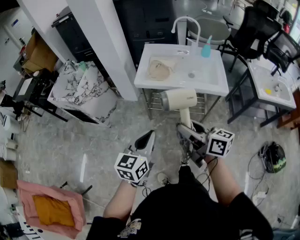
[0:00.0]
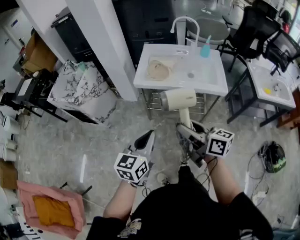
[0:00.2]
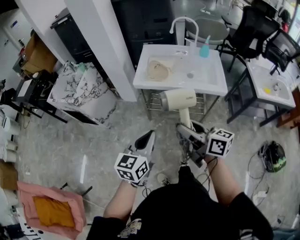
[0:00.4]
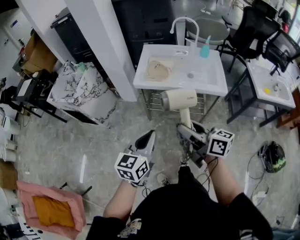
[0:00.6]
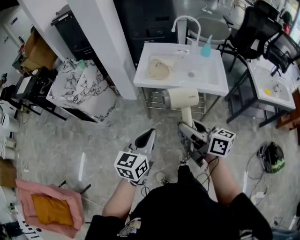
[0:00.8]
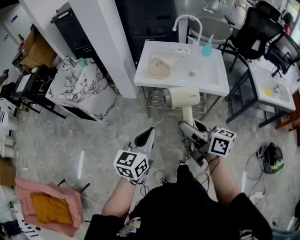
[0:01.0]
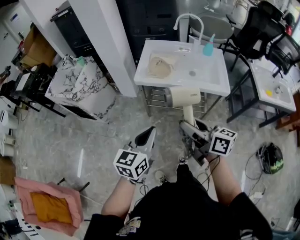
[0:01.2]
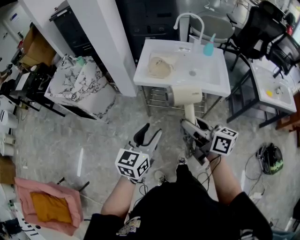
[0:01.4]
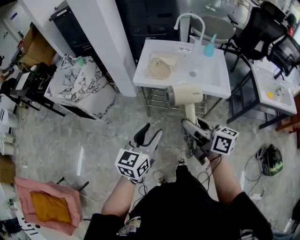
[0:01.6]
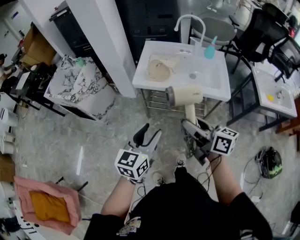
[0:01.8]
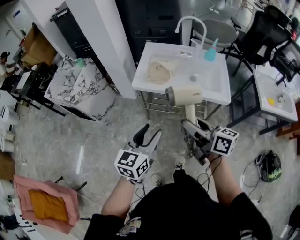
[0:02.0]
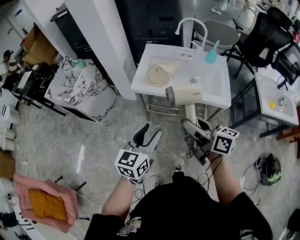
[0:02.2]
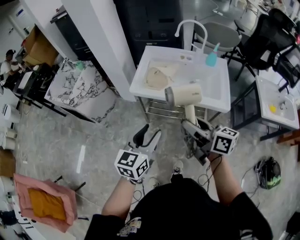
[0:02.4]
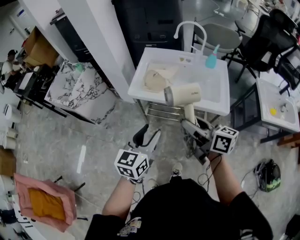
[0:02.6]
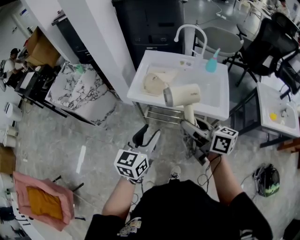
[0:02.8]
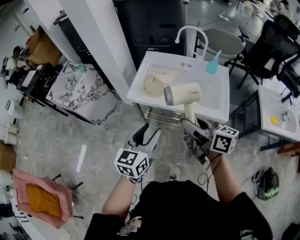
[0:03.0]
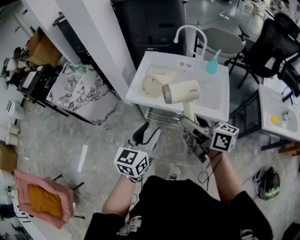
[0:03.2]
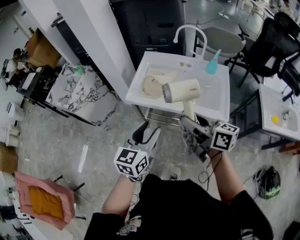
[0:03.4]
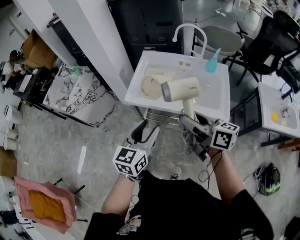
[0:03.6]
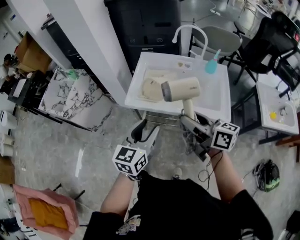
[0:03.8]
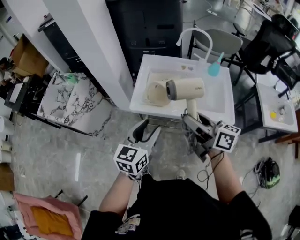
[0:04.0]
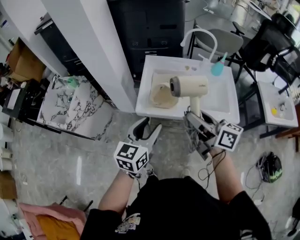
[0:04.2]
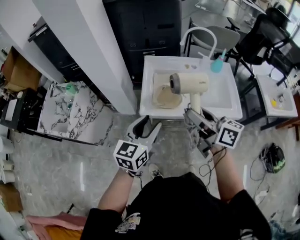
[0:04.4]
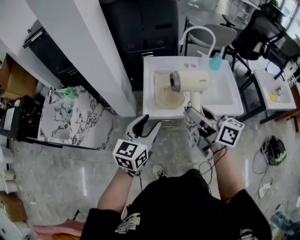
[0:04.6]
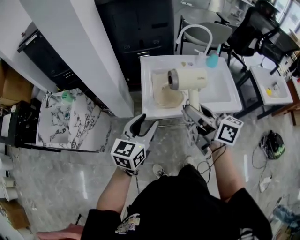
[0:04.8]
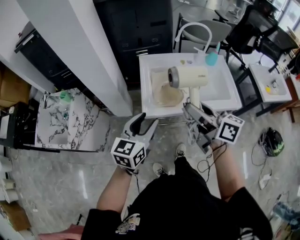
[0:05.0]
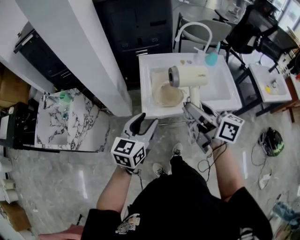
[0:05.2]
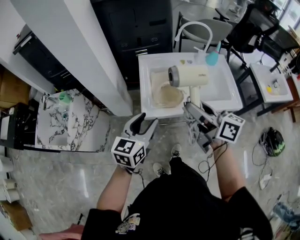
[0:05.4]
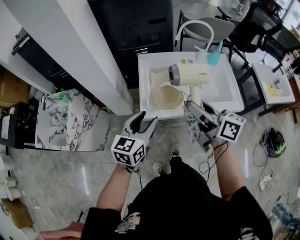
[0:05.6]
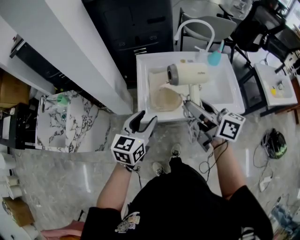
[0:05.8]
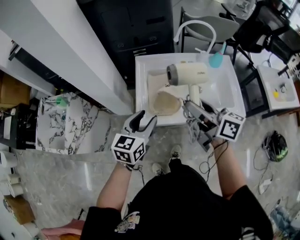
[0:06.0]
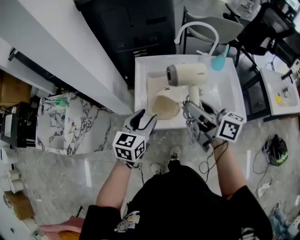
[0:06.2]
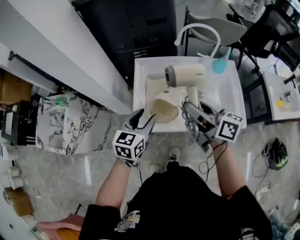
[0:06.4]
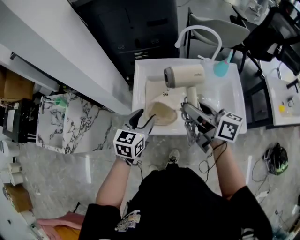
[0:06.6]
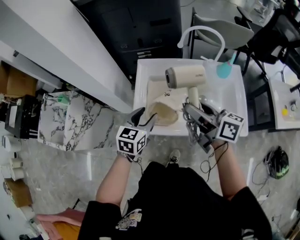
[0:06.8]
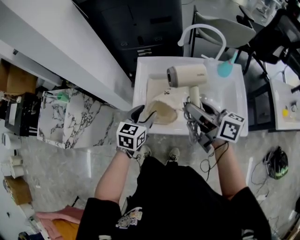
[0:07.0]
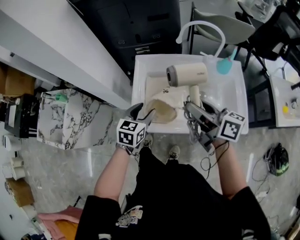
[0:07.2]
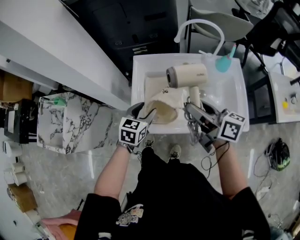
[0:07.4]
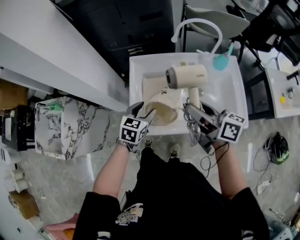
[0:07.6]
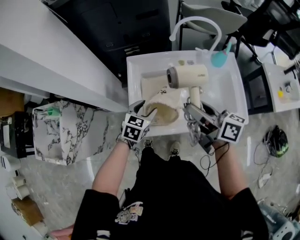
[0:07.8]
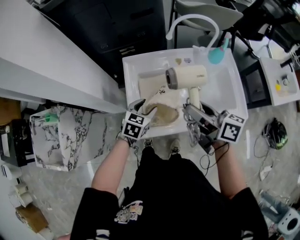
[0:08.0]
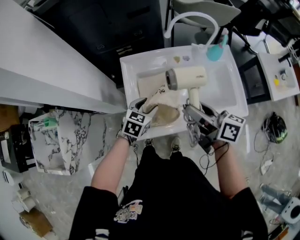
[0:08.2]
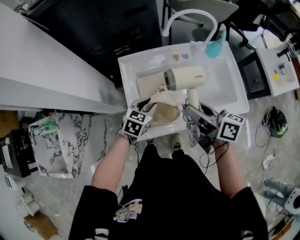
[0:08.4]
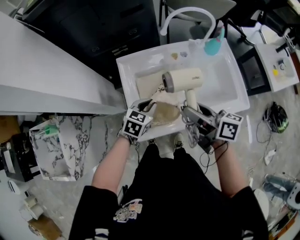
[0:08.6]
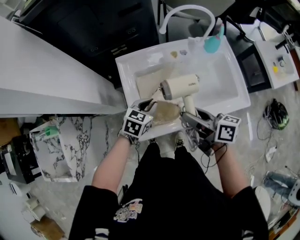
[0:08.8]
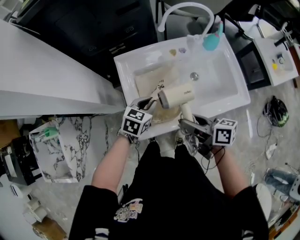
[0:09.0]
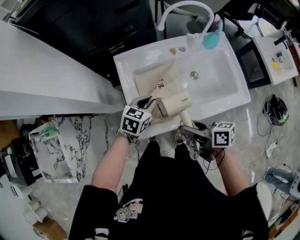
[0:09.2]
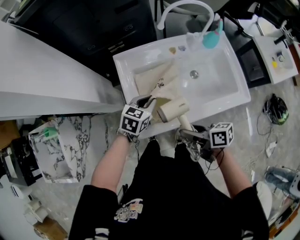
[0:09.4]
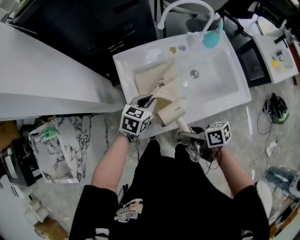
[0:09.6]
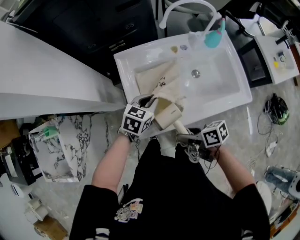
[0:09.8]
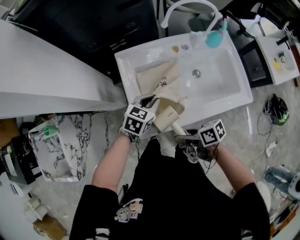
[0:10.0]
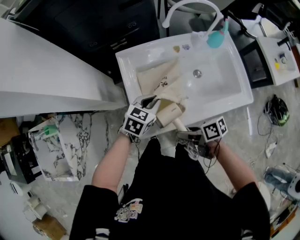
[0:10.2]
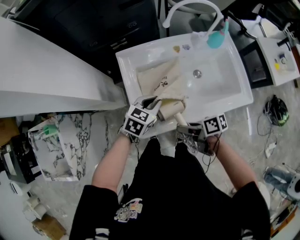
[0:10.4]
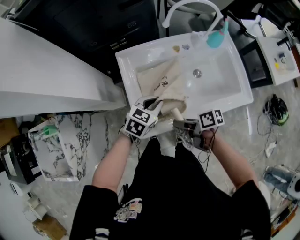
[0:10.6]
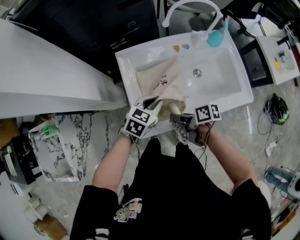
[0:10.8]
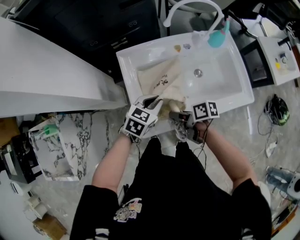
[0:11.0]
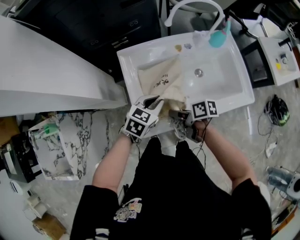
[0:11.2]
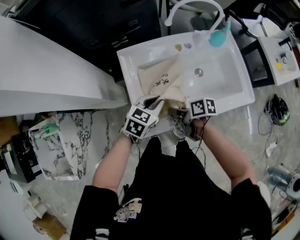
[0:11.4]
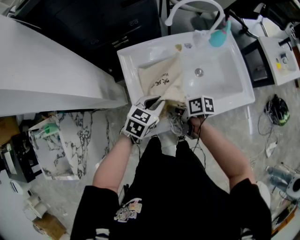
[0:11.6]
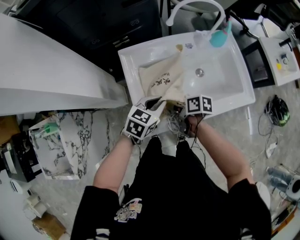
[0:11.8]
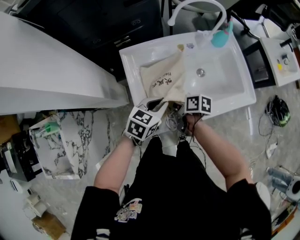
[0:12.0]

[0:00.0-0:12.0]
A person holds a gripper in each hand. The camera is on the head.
0:00.0 to 0:01.6: The right gripper moves approximately 5 cm, while the left gripper opens up.
0:01.6 to 0:03.0: Both grippers move forward and to the right, roughly 15 cm.
0:03.0 to 0:04.4: The two grippers go approximately 20 cm forward and to the left.
0:04.4 to 0:06.0: Both grippers move forward, roughly 10 cm.
0:06.0 to 0:07.6: The left gripper heads downward, forward and to the right, covering some 20 cm, while the right gripper goes about 10 cm forward, downward and to the right.
0:07.6 to 0:09.0: The left gripper turns by some 20 degrees, and closes up. The right gripper moves downward and backward, about 10 cm, and rotates about 20 degrees.
0:09.0 to 0:10.4: The right gripper goes about 10 cm downward, and turns by about 30 degrees.
0:10.4 to 0:12.0: The right gripper goes roughly 10 cm forward, and rotates some 20 degrees.

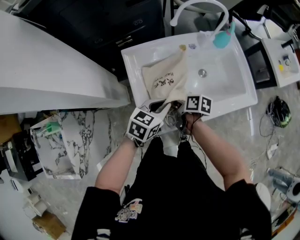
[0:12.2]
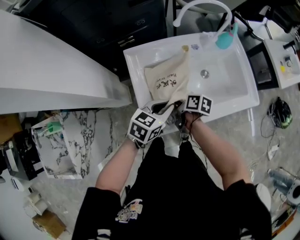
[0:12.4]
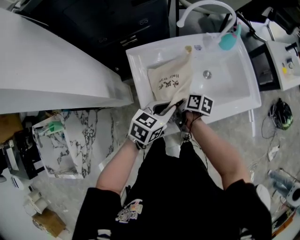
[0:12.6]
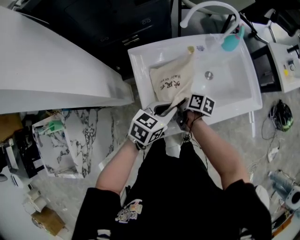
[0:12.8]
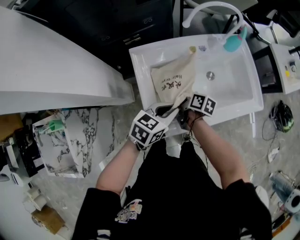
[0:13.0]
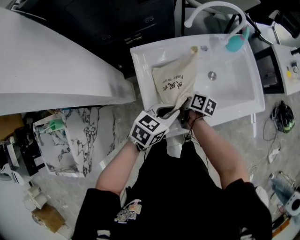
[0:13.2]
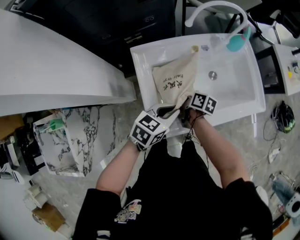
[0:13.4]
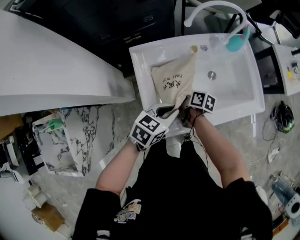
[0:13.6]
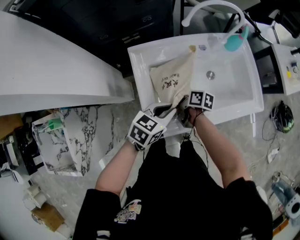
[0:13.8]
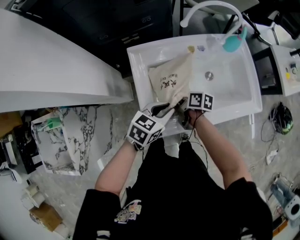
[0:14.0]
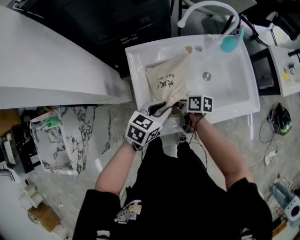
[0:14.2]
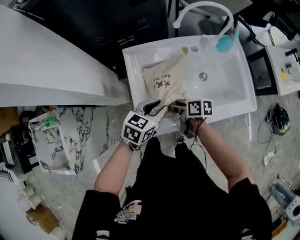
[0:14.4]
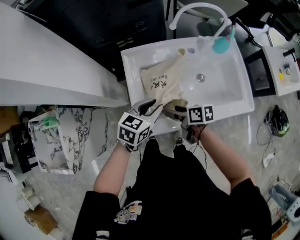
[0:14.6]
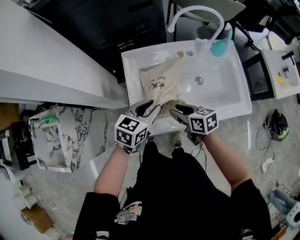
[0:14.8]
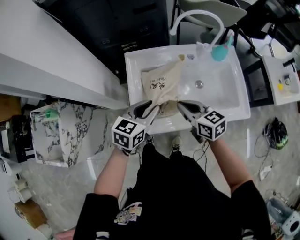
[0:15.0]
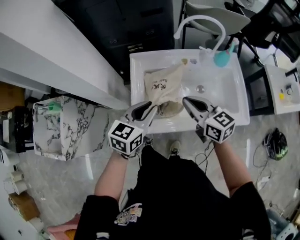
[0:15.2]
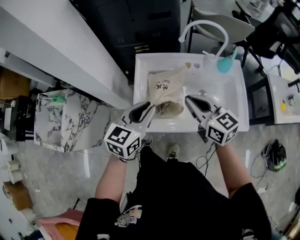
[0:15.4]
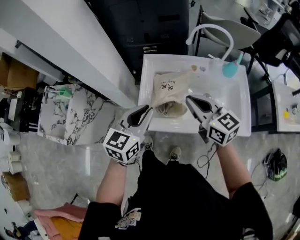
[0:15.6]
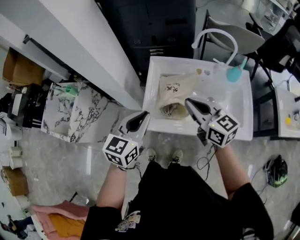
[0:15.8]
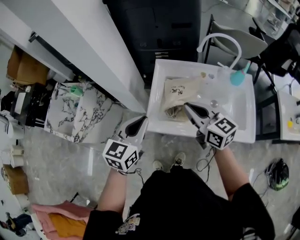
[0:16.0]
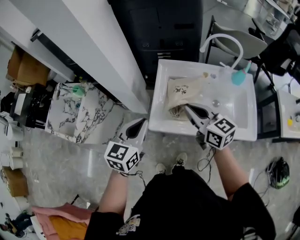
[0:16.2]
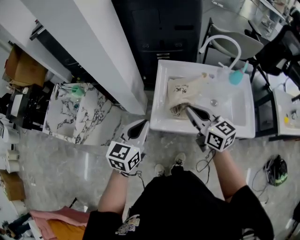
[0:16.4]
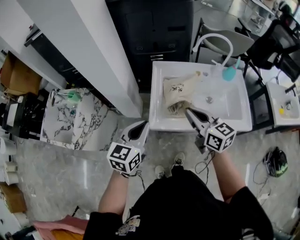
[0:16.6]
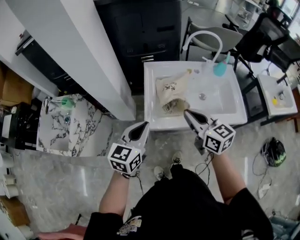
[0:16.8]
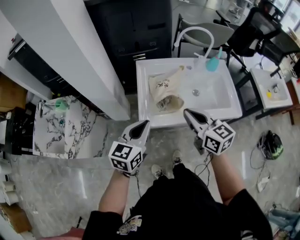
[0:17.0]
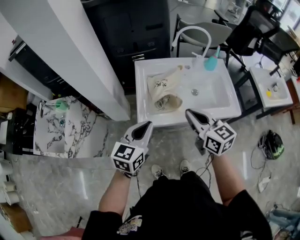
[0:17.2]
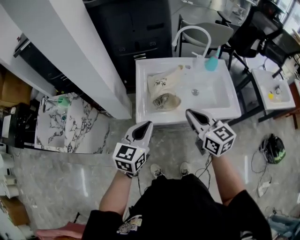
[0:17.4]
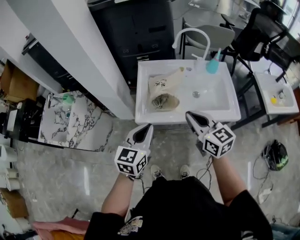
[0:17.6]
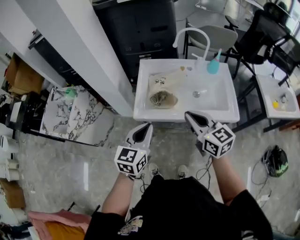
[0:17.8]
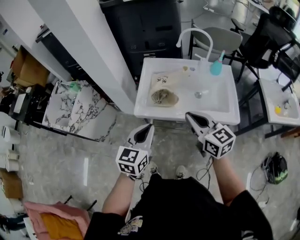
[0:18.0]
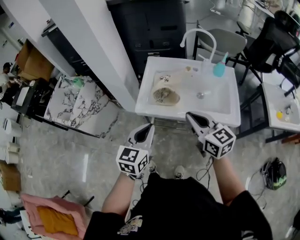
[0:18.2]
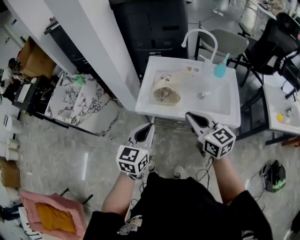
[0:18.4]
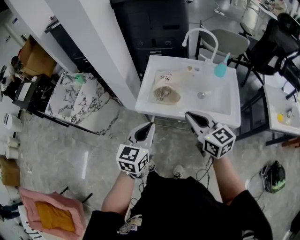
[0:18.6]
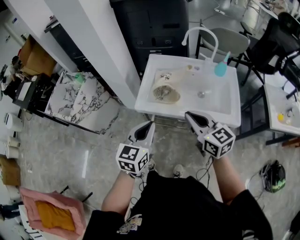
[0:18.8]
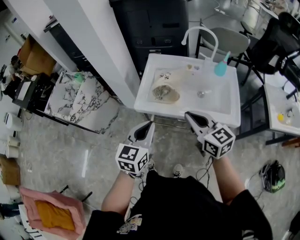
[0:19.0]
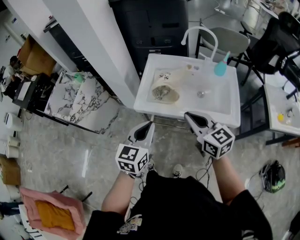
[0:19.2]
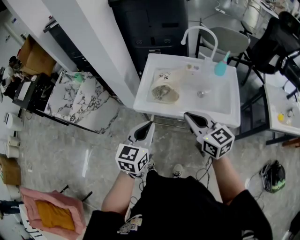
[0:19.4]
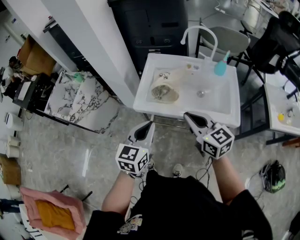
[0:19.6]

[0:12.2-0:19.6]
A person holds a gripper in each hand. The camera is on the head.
0:12.2 to 0:13.6: The right gripper goes roughly 5 cm forward.
0:13.6 to 0:15.2: The left gripper travels upward by some 10 cm, and turns by about 30 degrees. The right gripper shifts roughly 25 cm upward, twists roughly 60 degrees counterclockwise, seen from behind, and closes its fingers.
0:15.2 to 0:16.6: The right gripper goes approximately 15 cm to the left, backward and upward. Meanwhile the left gripper moves to the left and backward, some 20 cm.
0:16.6 to 0:18.2: The left gripper is displaced to the right and backward by approximately 20 cm, while the right gripper is displaced backward and to the right by about 20 cm.
0:18.2 to 0:19.6: The grippers move only a little.

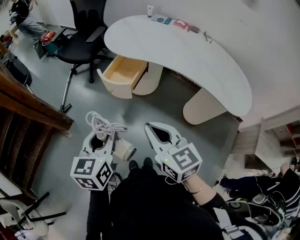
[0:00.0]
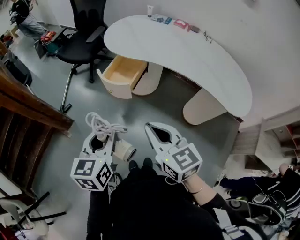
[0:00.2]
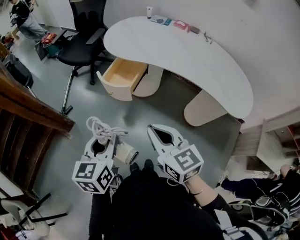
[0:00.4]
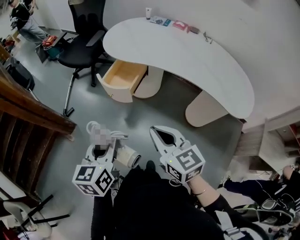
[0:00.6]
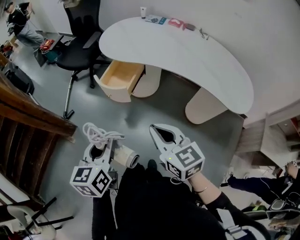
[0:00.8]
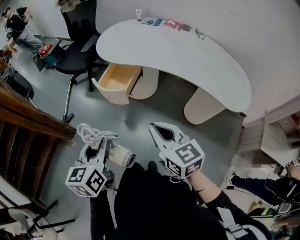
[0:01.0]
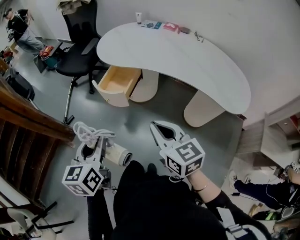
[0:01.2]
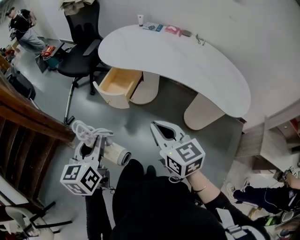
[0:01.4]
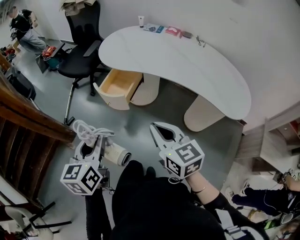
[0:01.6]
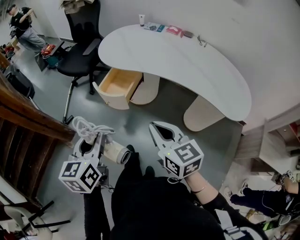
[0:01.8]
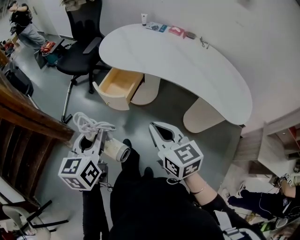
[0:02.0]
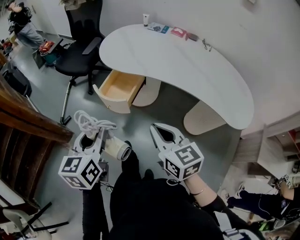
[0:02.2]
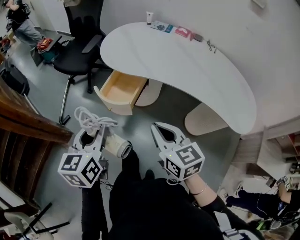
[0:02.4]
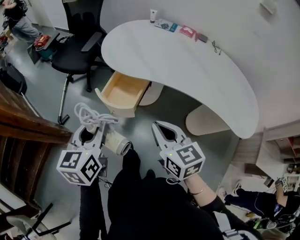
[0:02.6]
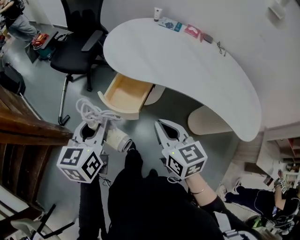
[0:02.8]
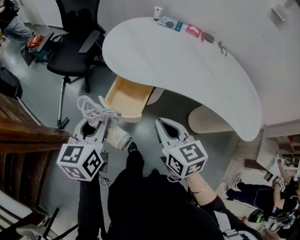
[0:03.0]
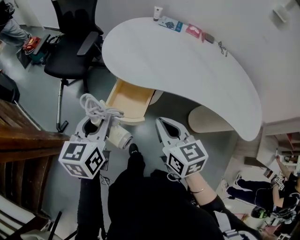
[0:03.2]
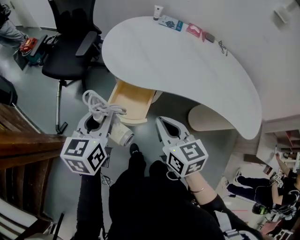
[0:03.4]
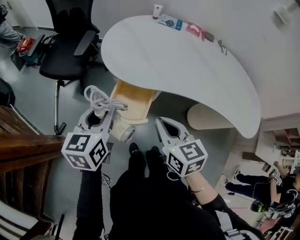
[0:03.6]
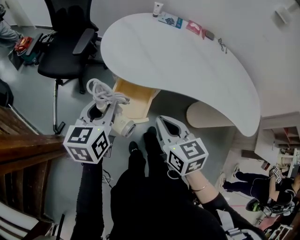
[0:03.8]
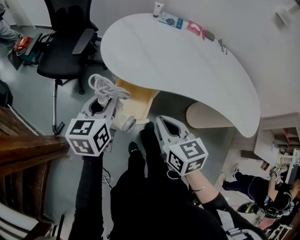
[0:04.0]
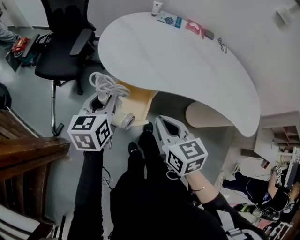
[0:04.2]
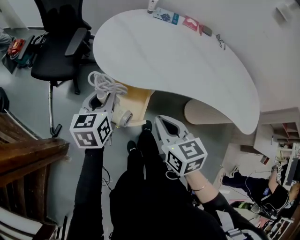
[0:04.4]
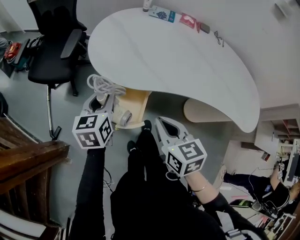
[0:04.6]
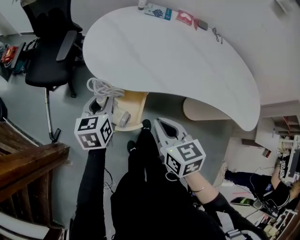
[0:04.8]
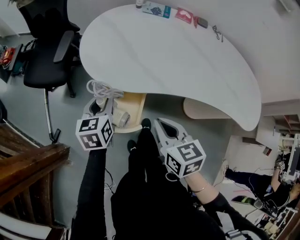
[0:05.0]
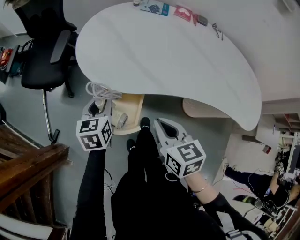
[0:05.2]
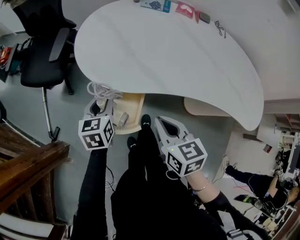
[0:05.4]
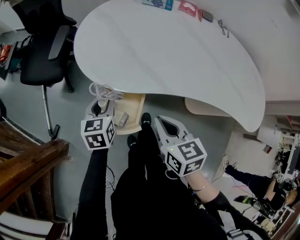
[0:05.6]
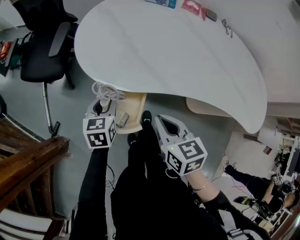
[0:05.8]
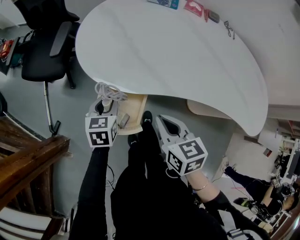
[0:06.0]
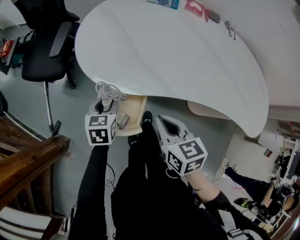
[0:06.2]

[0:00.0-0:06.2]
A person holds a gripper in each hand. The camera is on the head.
0:00.0 to 0:01.6: The right gripper goes roughly 5 cm to the right.
0:01.6 to 0:03.2: Both grippers move forward, about 25 cm.
0:03.2 to 0:04.6: The right gripper moves roughly 5 cm. Meanwhile the left gripper is displaced forward and downward by some 15 cm.
0:04.6 to 0:06.2: The right gripper moves downward, approximately 5 cm. The left gripper moves downward, some 10 cm.
